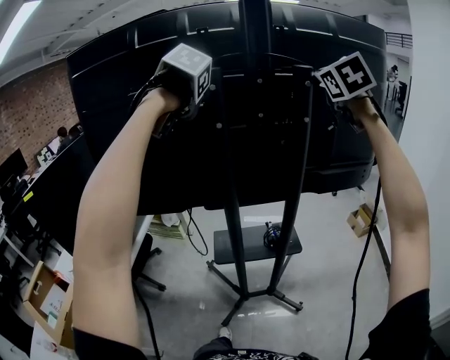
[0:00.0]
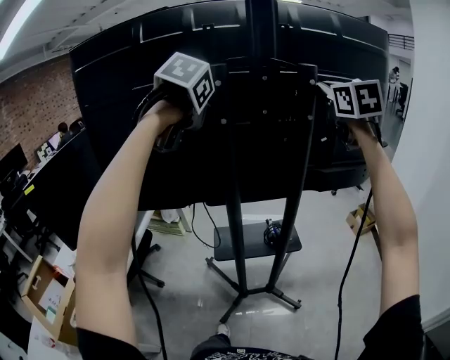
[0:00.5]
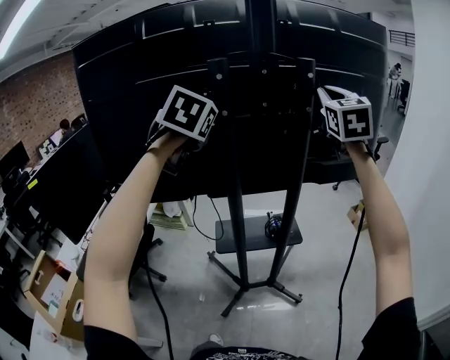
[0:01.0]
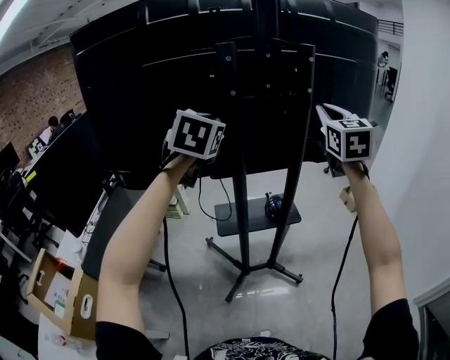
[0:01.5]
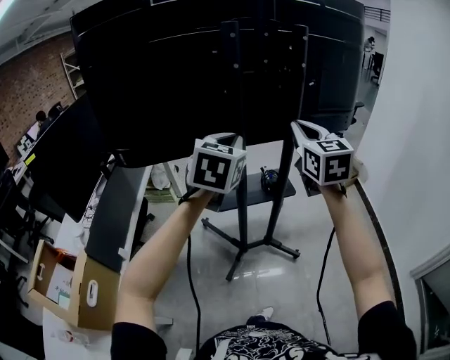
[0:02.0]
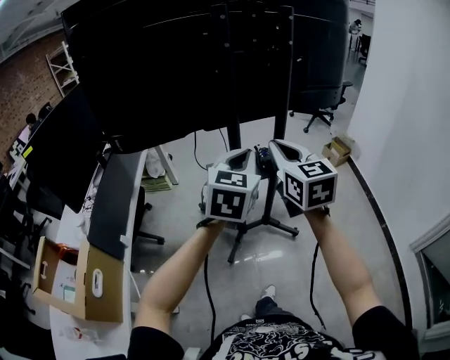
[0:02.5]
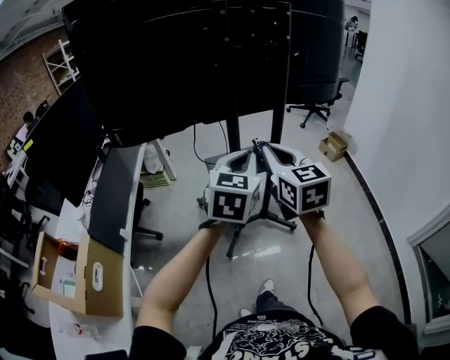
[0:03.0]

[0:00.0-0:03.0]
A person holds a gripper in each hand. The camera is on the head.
0:00.0 to 0:01.5: The right gripper goes approximately 15 cm downward and backward, and turns by approximately 20 degrees. The left gripper shifts approximately 10 cm backward and downward, and angles its fingers upward, by approximately 30 degrees.
0:01.5 to 0:03.0: The right gripper goes about 35 cm backward, downward and to the left. Meanwhile the left gripper moves backward and downward, about 30 cm, and turns by roughly 20 degrees.

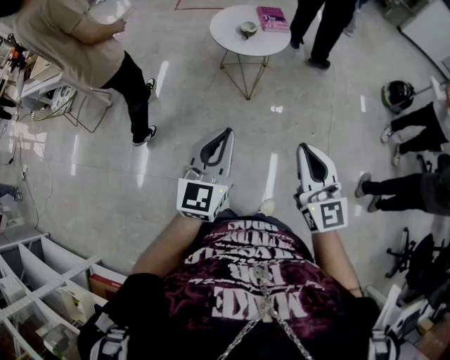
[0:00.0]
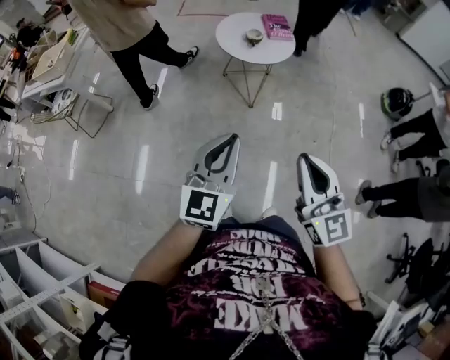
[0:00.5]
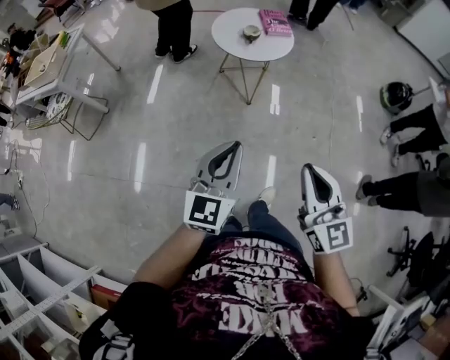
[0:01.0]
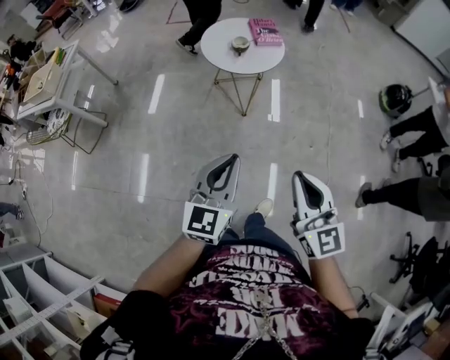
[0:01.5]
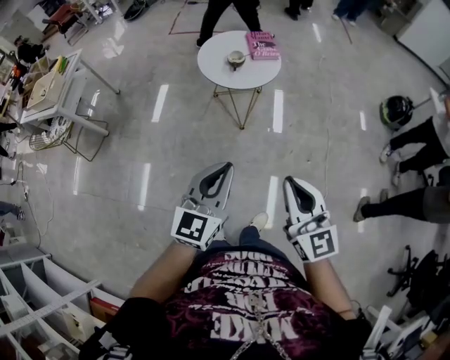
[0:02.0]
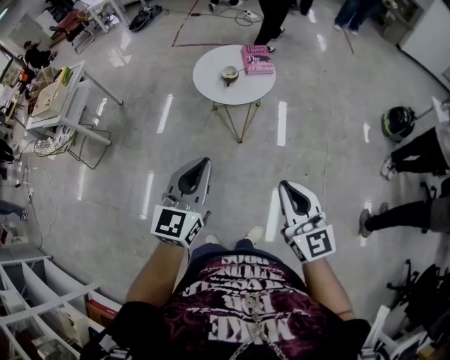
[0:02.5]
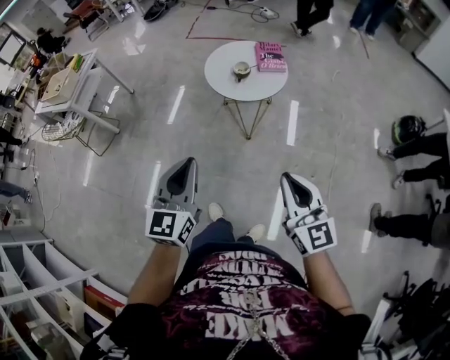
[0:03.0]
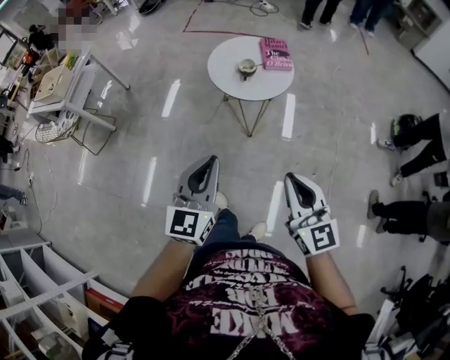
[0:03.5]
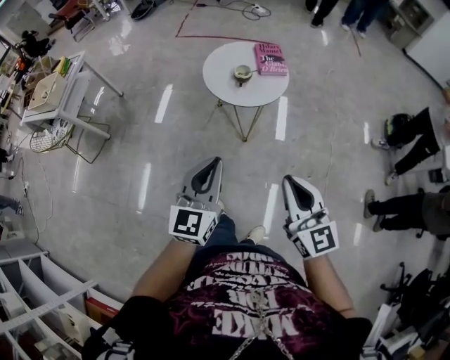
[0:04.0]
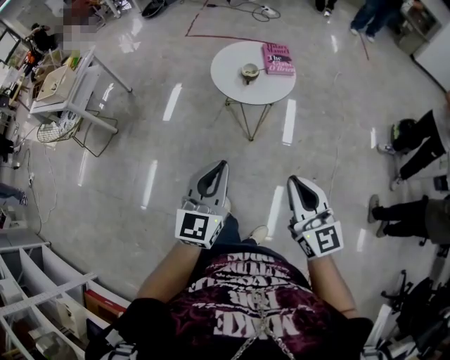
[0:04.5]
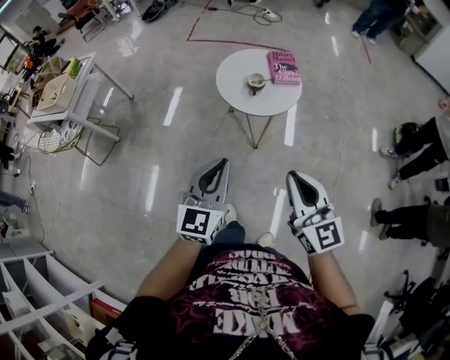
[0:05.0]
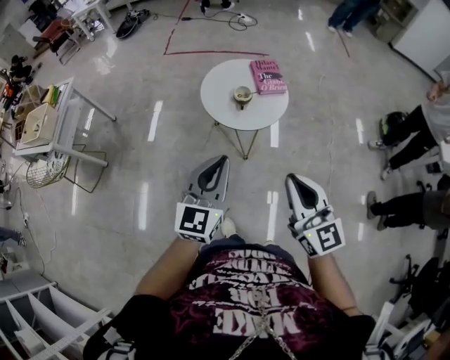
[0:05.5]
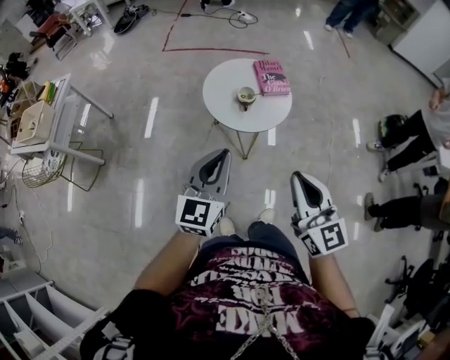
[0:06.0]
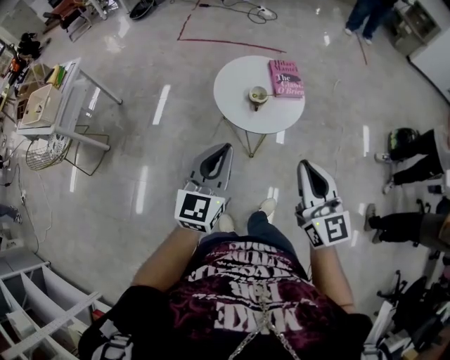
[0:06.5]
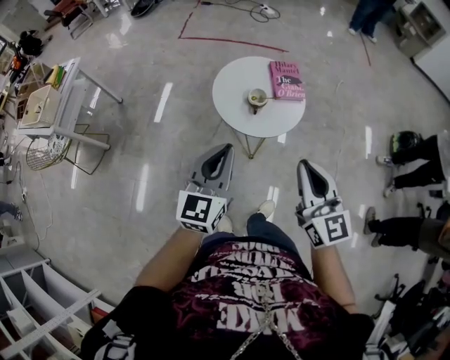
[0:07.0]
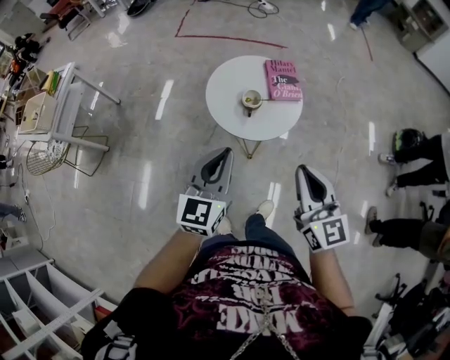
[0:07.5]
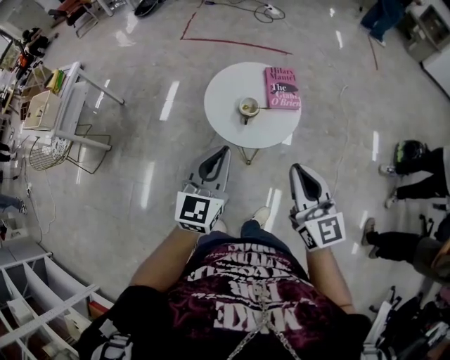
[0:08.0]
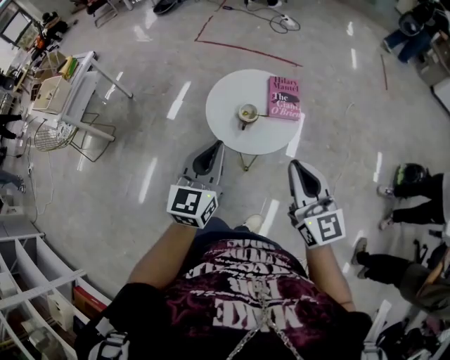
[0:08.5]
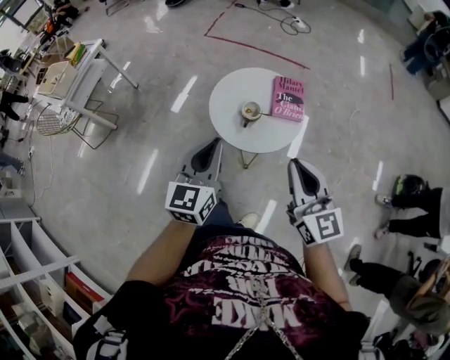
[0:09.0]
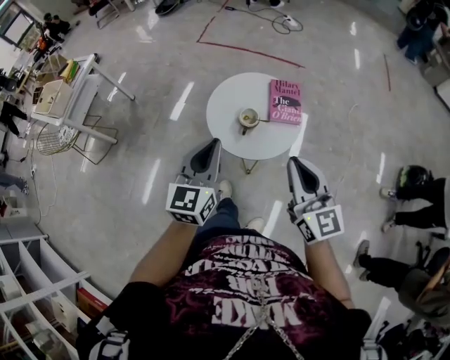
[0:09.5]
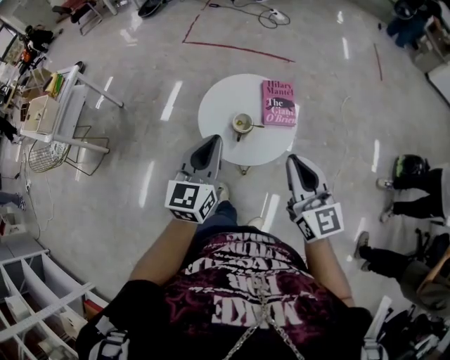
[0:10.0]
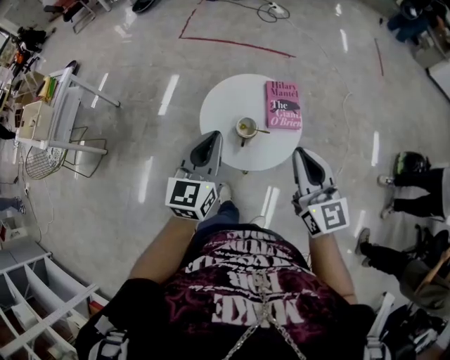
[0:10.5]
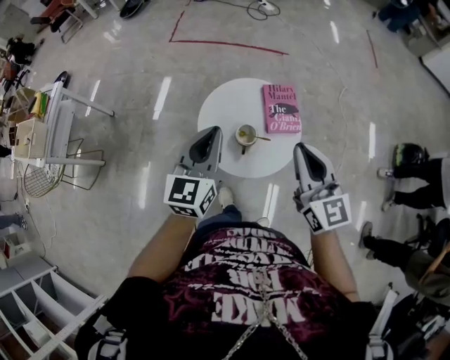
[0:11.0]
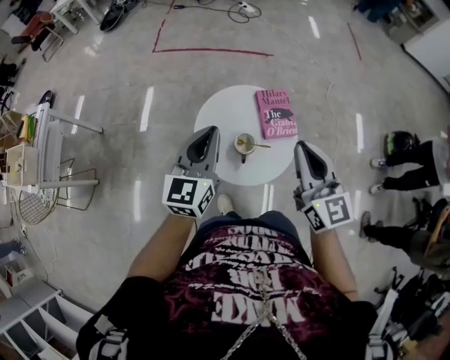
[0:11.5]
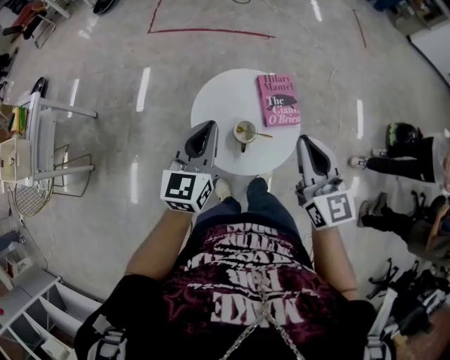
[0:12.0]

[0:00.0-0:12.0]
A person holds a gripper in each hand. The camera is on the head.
0:00.0 to 0:02.0: The left gripper heads forward and to the right, covering some 10 cm. The right gripper moves forward, about 5 cm.
0:02.0 to 0:04.0: The grippers both shift forward by roughly 10 cm.
0:04.0 to 0:06.0: The right gripper is displaced forward and to the left by some 15 cm; the left gripper heads forward, covering some 15 cm.
0:06.0 to 0:08.0: The grippers both shift forward and to the right by about 15 cm.
0:08.0 to 0:10.0: The grippers both shift forward by approximately 10 cm.
0:10.0 to 0:12.0: The grippers both shift forward by roughly 15 cm.

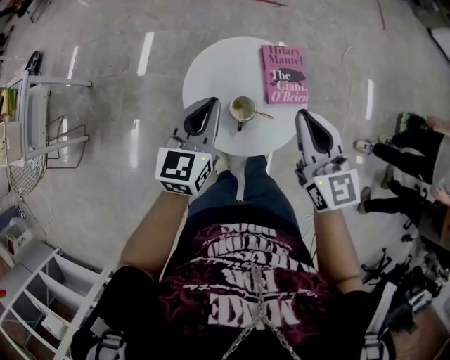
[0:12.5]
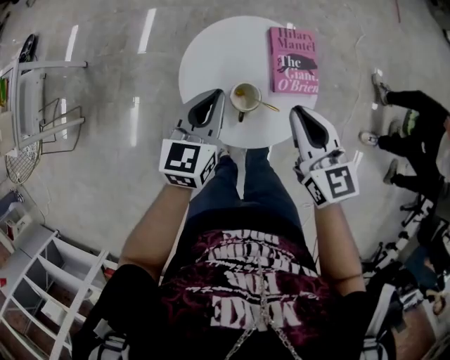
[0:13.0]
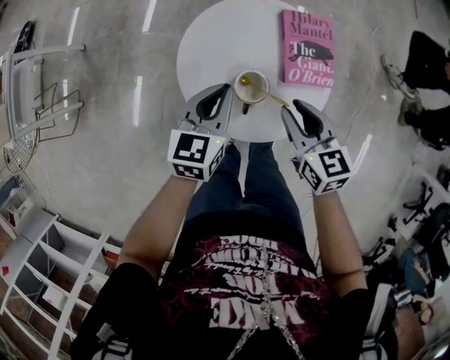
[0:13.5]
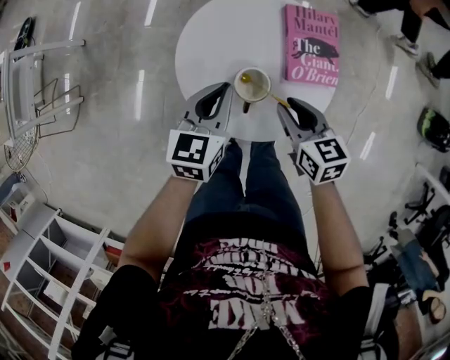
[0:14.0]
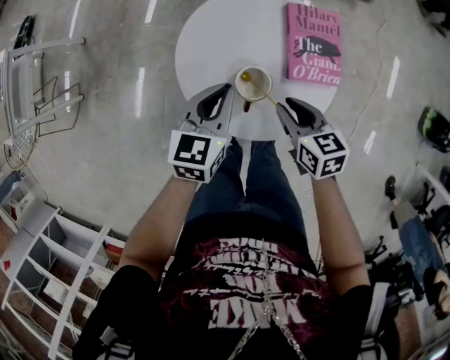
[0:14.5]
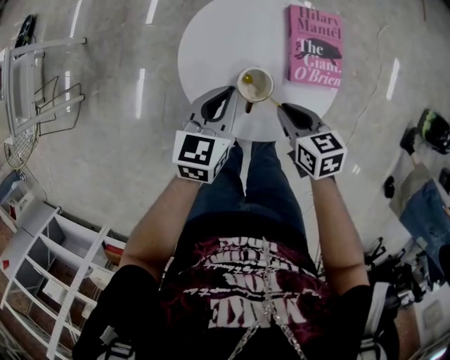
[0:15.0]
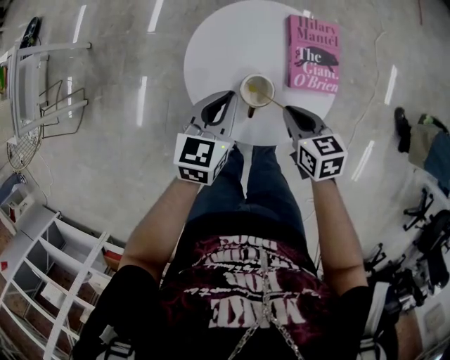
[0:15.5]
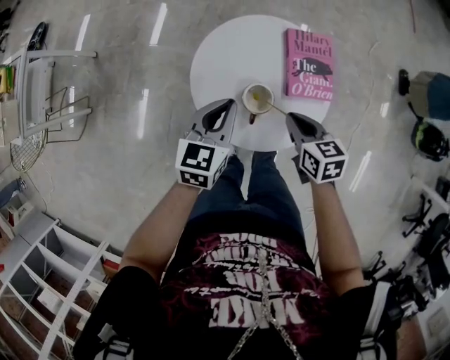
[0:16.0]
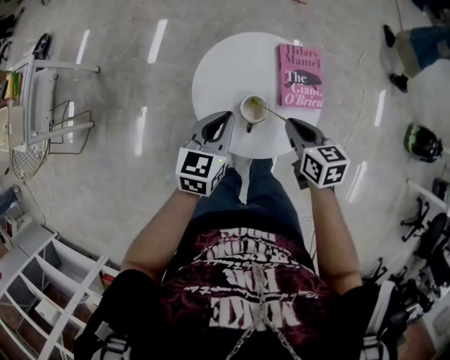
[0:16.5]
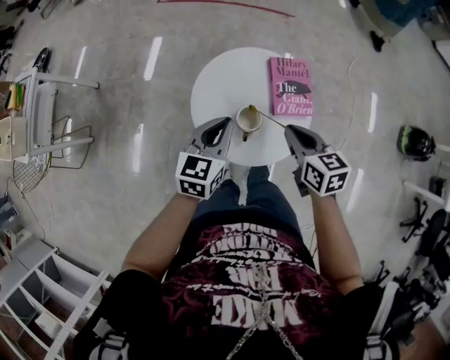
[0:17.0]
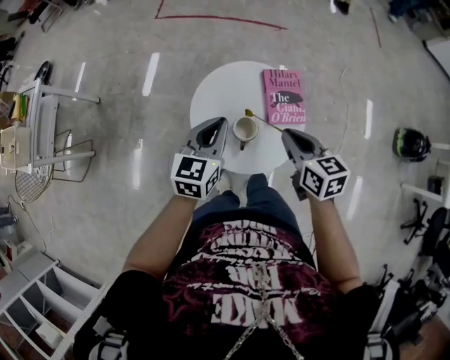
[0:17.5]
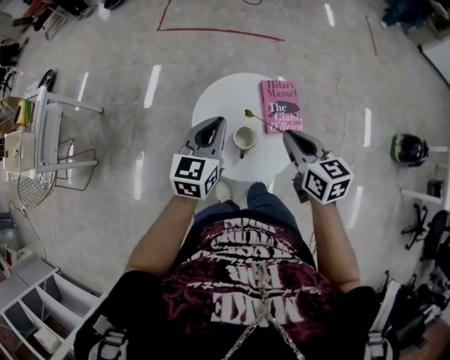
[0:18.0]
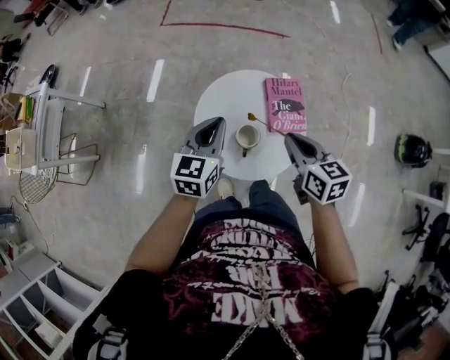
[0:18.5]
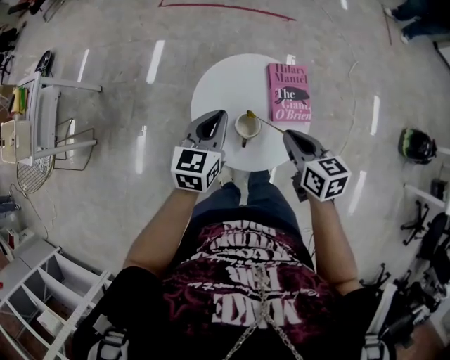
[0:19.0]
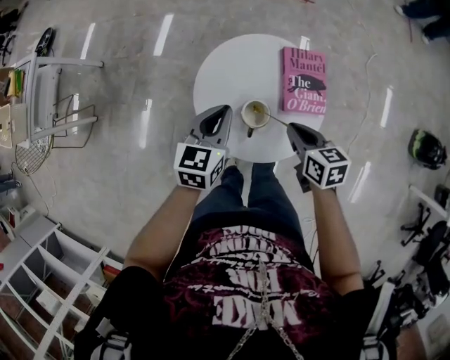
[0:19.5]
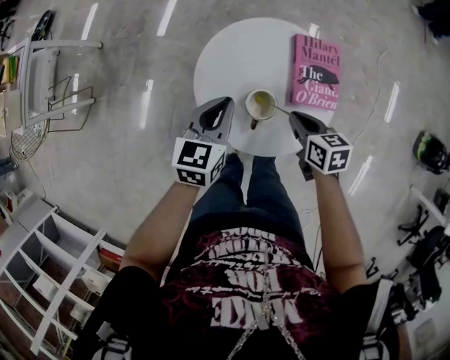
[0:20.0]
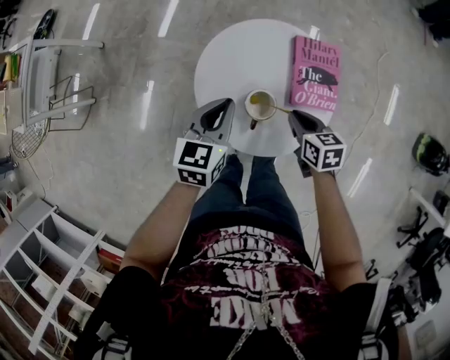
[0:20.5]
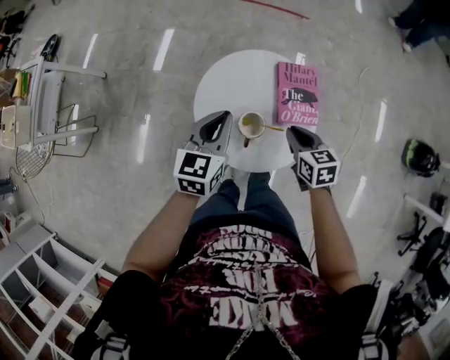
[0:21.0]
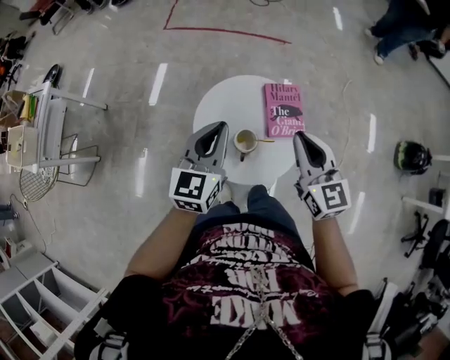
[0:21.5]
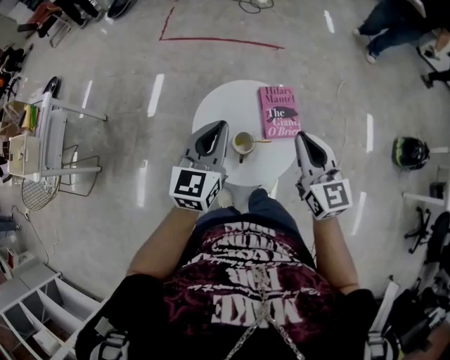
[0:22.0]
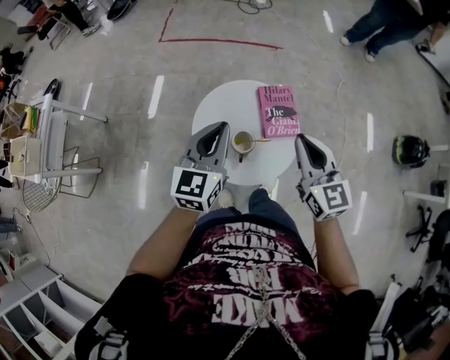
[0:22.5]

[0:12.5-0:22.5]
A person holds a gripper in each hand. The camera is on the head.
0:12.5 to 0:14.5: The right gripper travels downward by about 30 cm, turns by some 40 degrees, and opens its fingers; the left gripper moves downward, roughly 15 cm.
0:14.5 to 0:16.5: The two grippers go about 10 cm upward. The right gripper closes its fingers.
0:16.5 to 0:18.5: Both grippers move upward, some 10 cm.
0:18.5 to 0:20.5: The right gripper goes approximately 25 cm downward, and rotates roughly 20 degrees. Meanwhile the left gripper shifts roughly 15 cm downward.
0:20.5 to 0:22.5: The left gripper shifts roughly 20 cm upward, and swivels roughly 20 degrees. Meanwhile the right gripper goes about 30 cm upward, and points its fingers some 40 degrees further upward.

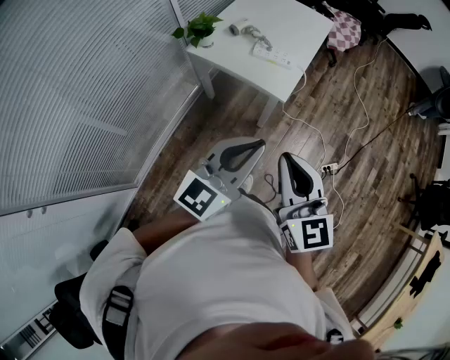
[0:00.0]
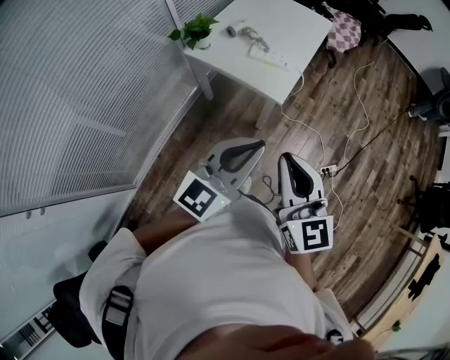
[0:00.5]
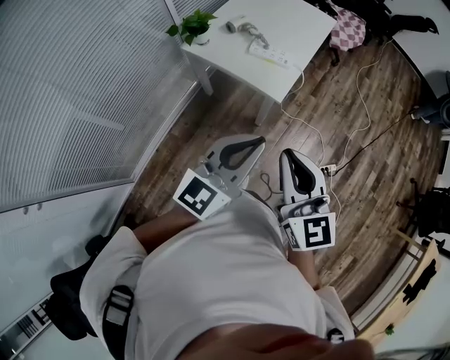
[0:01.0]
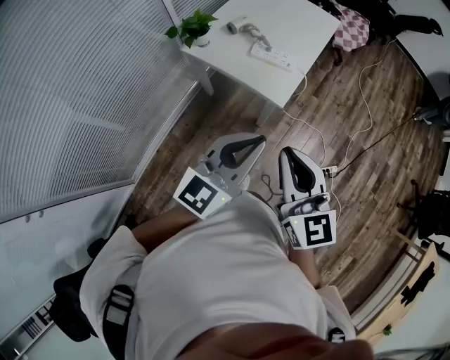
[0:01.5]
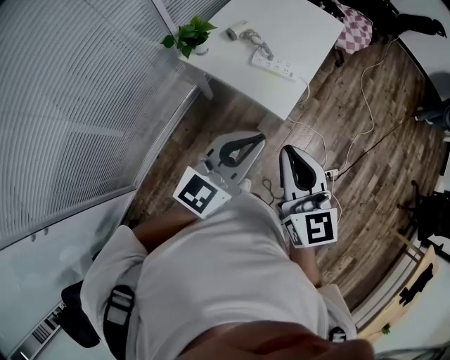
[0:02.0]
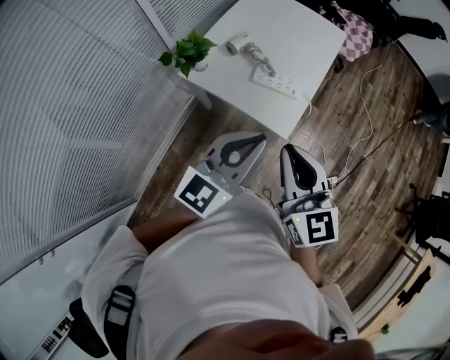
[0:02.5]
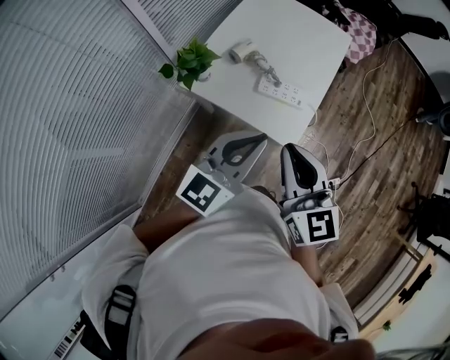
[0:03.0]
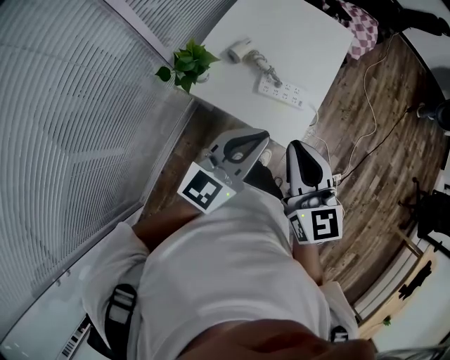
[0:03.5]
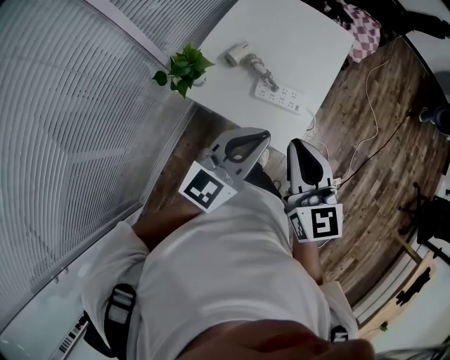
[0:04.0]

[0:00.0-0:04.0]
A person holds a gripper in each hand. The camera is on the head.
0:00.0 to 0:02.0: The two grippers go about 15 cm forward.
0:02.0 to 0:04.0: Both grippers move forward, approximately 20 cm.
